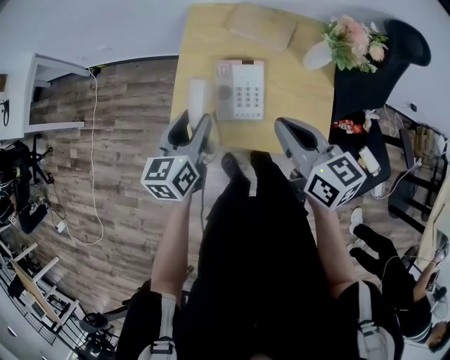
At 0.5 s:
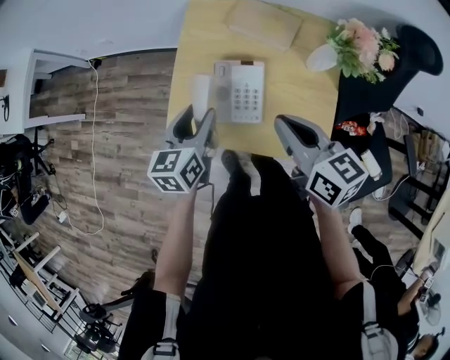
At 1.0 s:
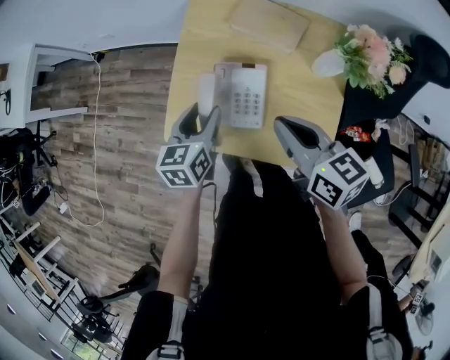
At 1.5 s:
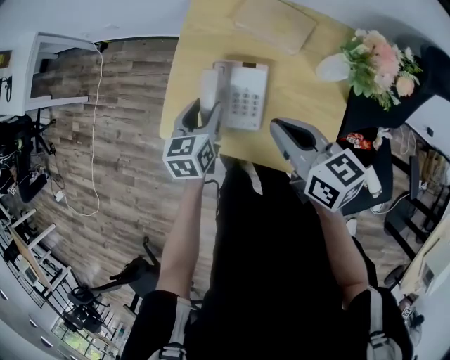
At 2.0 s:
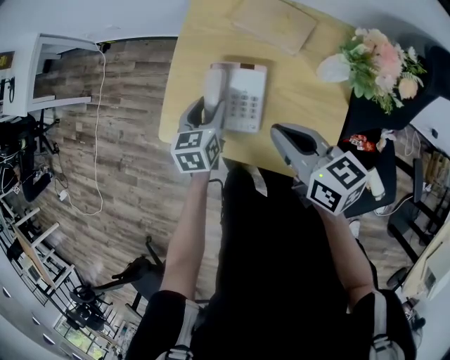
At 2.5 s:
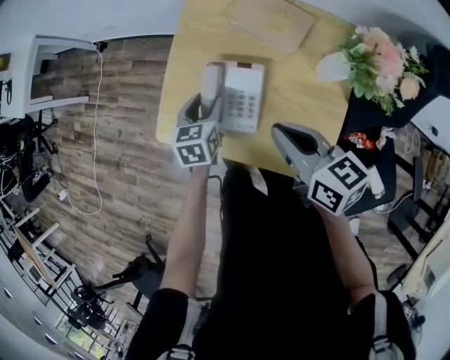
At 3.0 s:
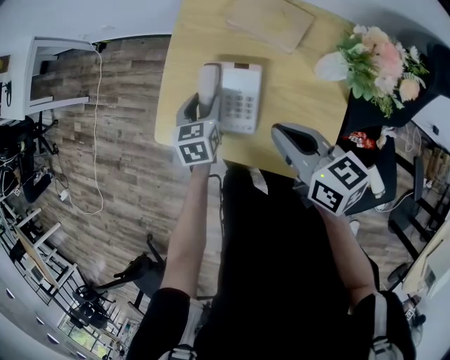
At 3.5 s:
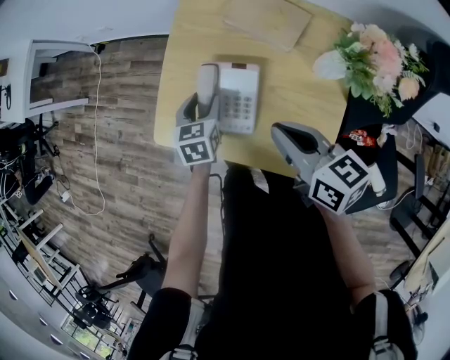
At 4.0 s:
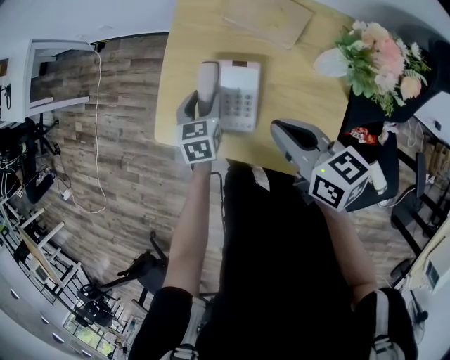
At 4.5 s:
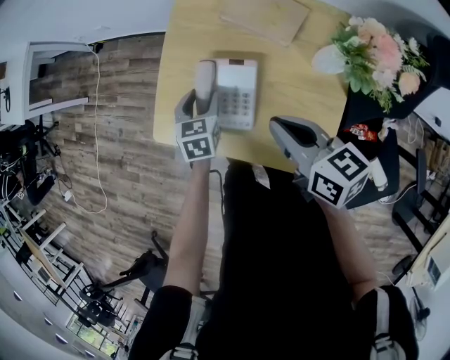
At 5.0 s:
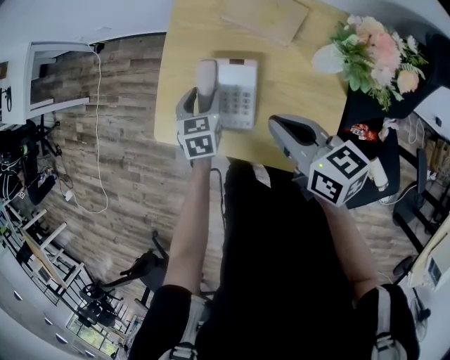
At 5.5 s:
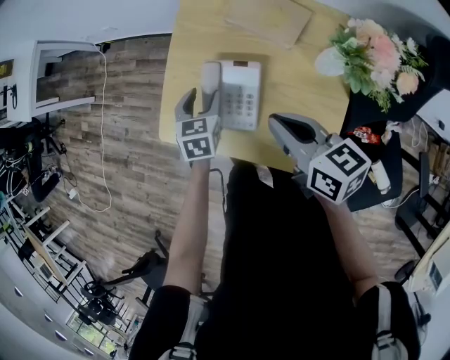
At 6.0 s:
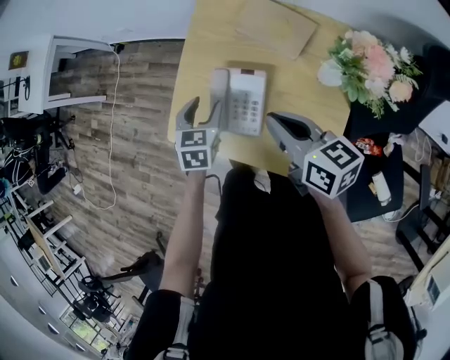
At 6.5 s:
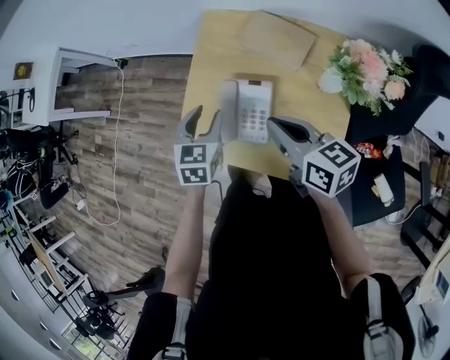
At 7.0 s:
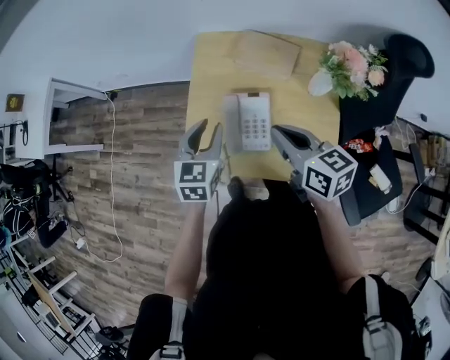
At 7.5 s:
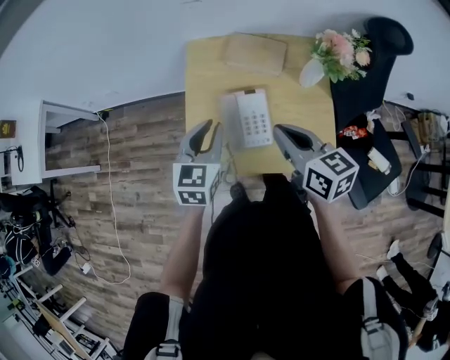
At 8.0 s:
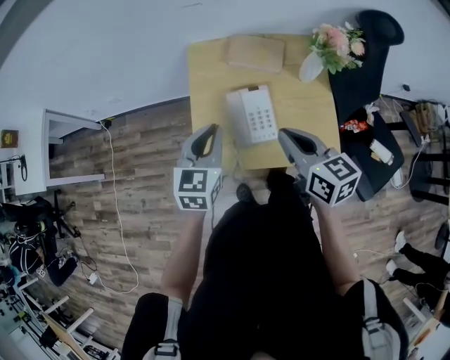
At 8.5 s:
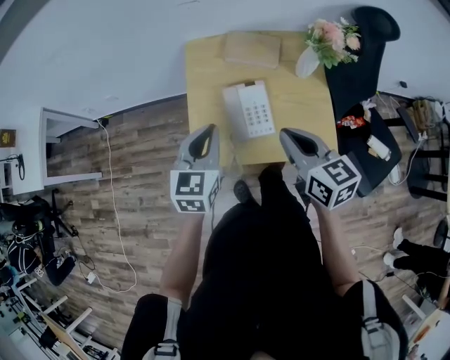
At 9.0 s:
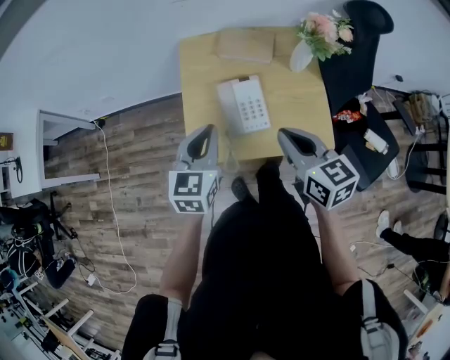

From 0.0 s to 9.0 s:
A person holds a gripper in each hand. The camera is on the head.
From 0.0 s to 2.0 s: The left gripper moves downward, to the right and forward, about 20 cm, and swivels about 20 degrees; the right gripper travels downward, to the right and forward by some 10 cm.
From 2.0 s to 4.5 s: There are only small adjustments of the grippers.
From 4.5 s to 7.0 s: The left gripper heads upward, covering about 20 cm, rotates some 20 degrees, and closes; the right gripper shifts roughly 10 cm upward and to the left.
From 7.0 s to 9.0 s: The right gripper travels backward by about 10 cm. Meanwhile the left gripper shifts approximately 10 cm backward and upward, and closes up.

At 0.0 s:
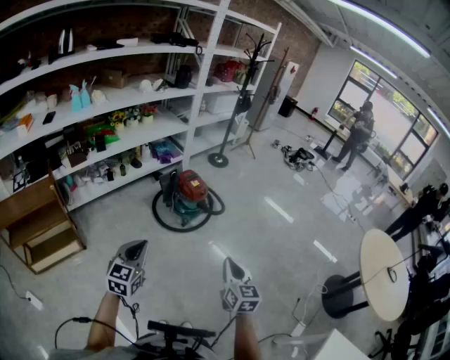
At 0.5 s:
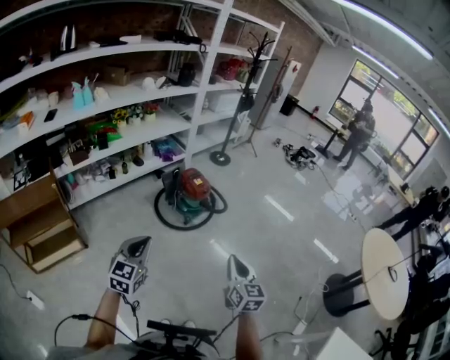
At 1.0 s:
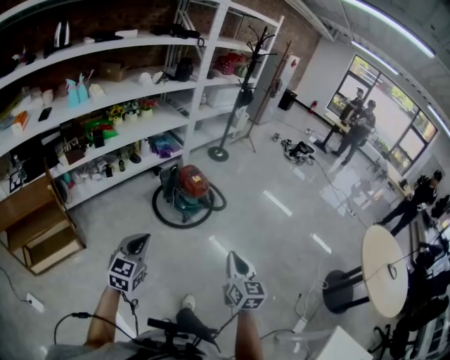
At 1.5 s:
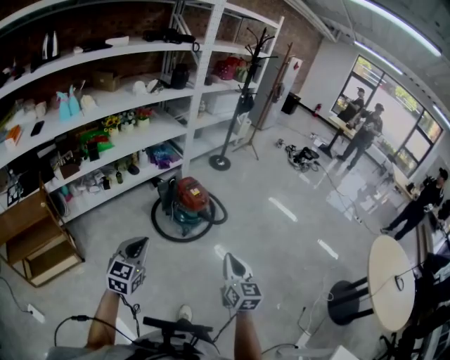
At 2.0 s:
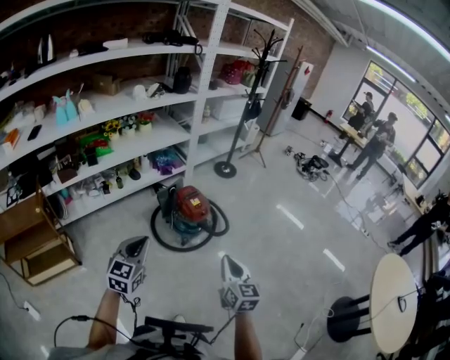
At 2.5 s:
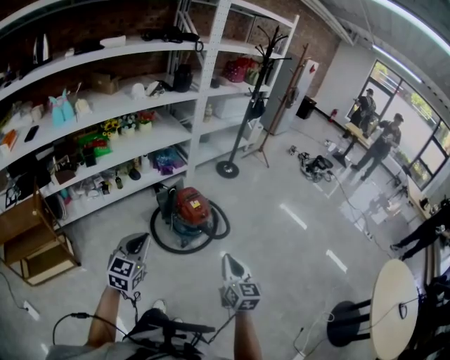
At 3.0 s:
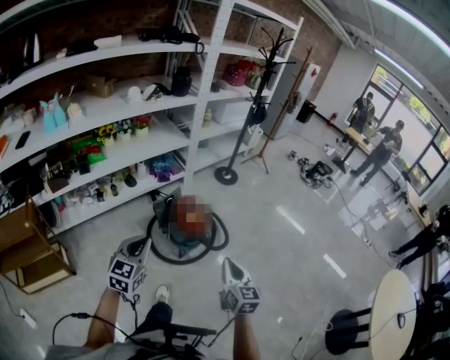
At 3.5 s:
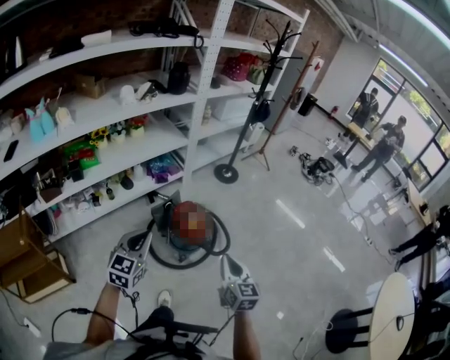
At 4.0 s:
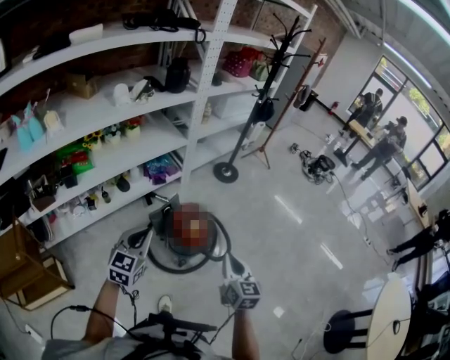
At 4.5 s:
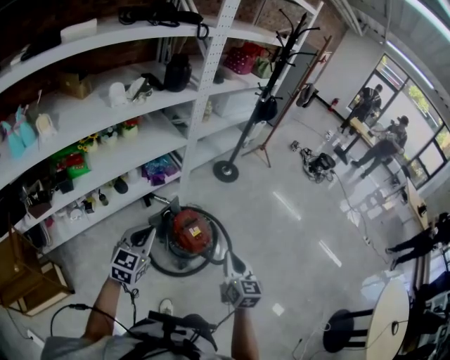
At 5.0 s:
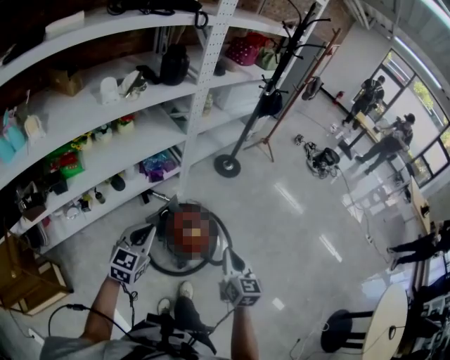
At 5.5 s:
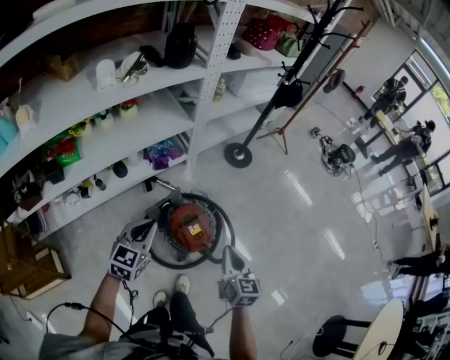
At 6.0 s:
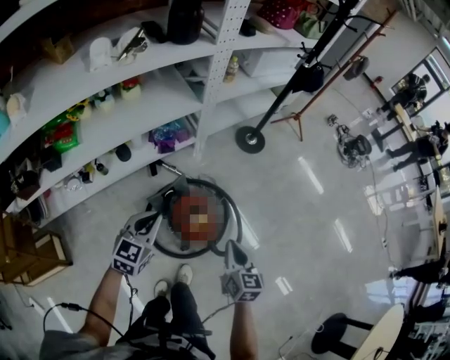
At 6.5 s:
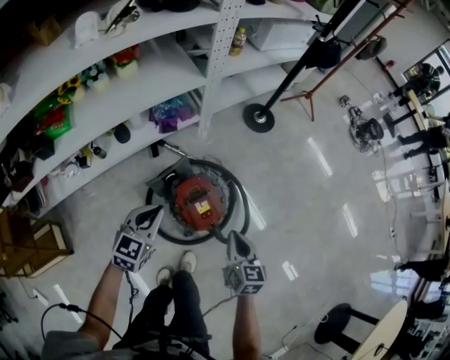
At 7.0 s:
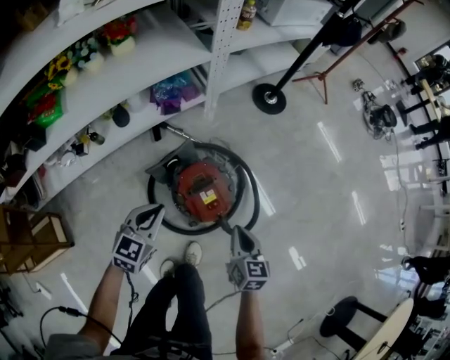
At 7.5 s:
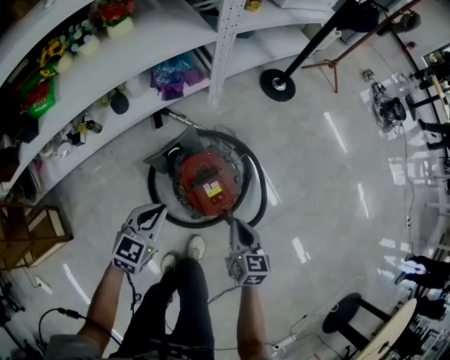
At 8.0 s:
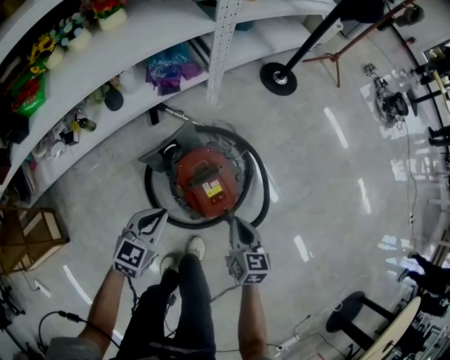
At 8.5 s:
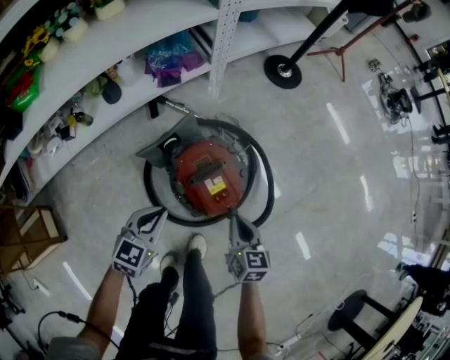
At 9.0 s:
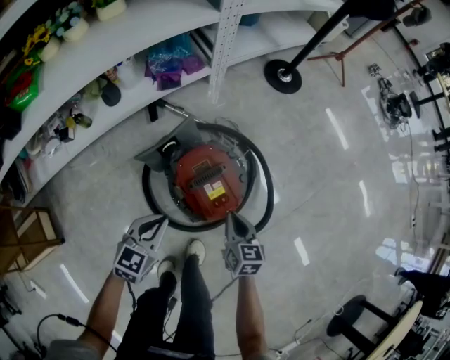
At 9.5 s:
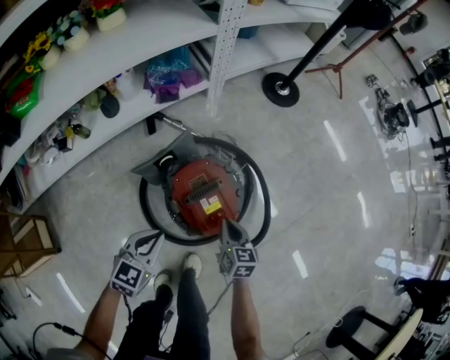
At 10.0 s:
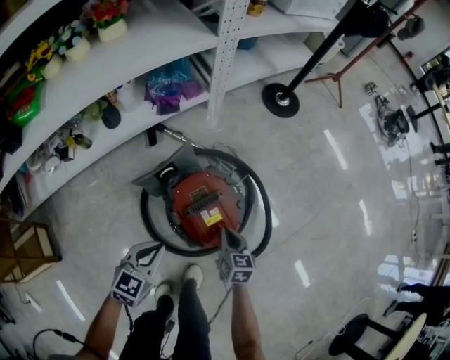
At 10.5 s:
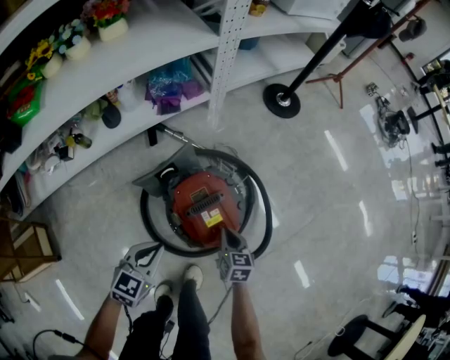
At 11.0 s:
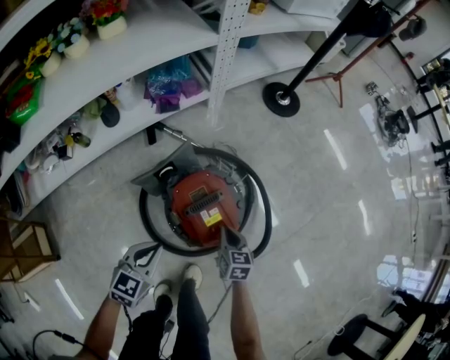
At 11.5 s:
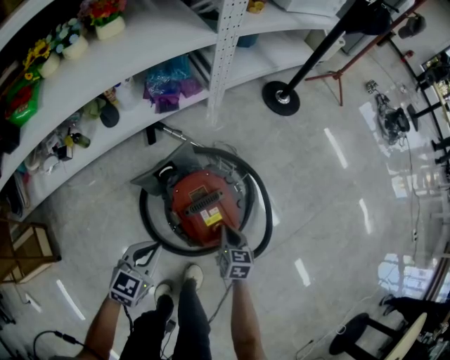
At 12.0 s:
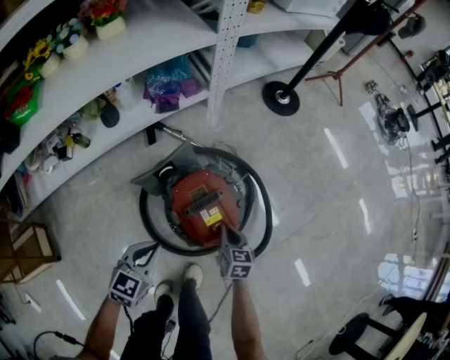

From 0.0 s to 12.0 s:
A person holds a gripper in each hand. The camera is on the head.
From 0.0 s to 2.0 s: Both grippers move forward, some 25 cm.
From 2.0 s to 4.0 s: Both grippers move forward, approximately 35 cm.
From 4.0 s to 6.0 s: Both grippers move forward and downward, roughly 25 cm.
From 6.0 s to 8.0 s: The grippers both shift downward by some 25 cm.
From 8.0 s to 10.0 s: The left gripper shifts some 5 cm downward. The right gripper goes about 15 cm downward.
From 10.0 s to 12.0 s: The grippers move only a little.

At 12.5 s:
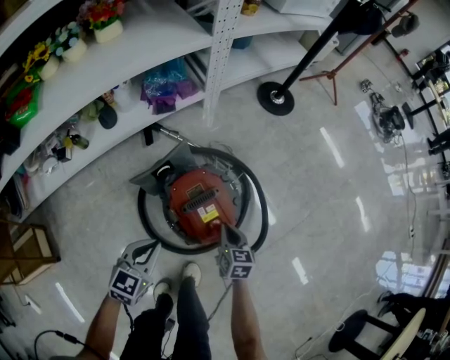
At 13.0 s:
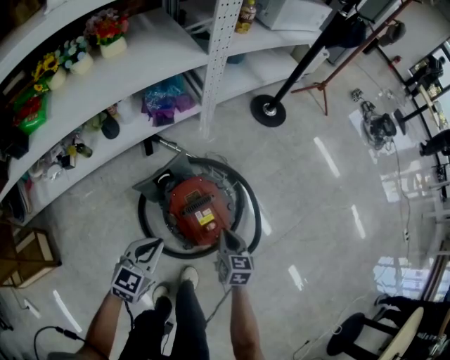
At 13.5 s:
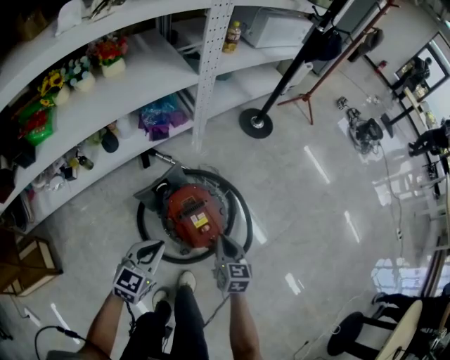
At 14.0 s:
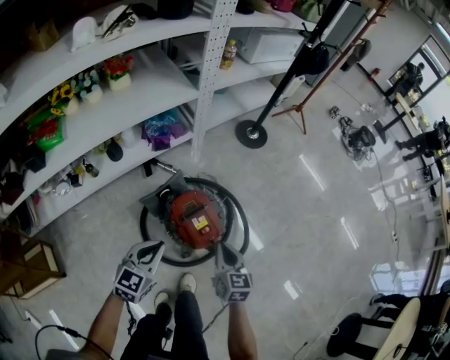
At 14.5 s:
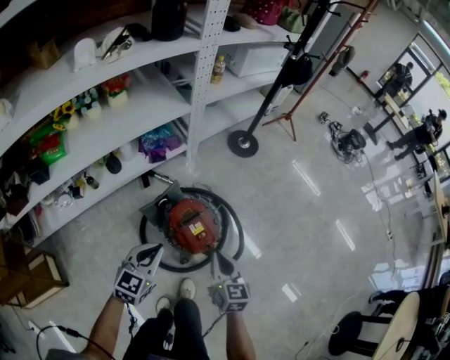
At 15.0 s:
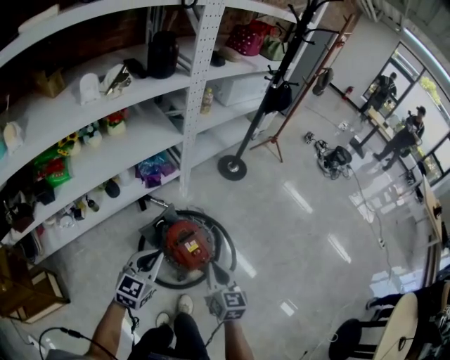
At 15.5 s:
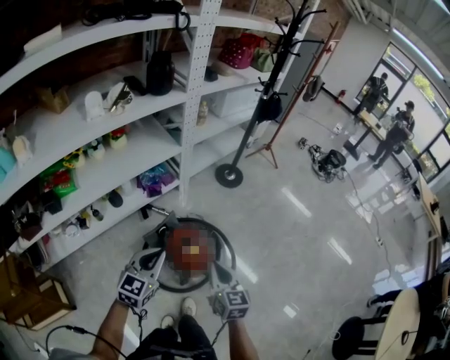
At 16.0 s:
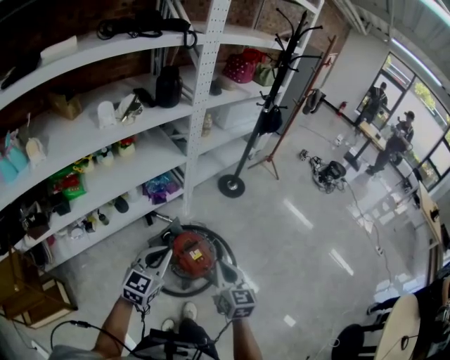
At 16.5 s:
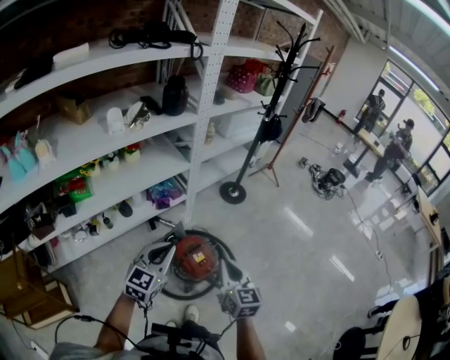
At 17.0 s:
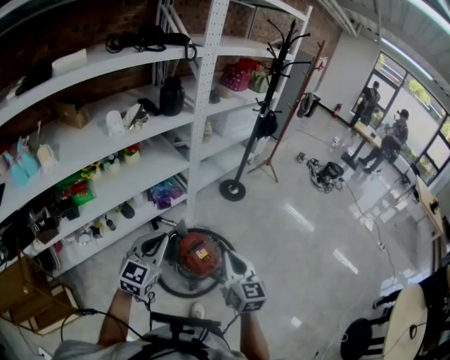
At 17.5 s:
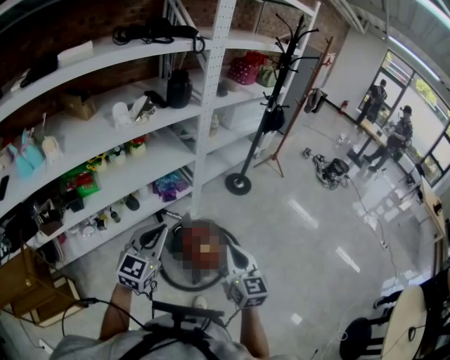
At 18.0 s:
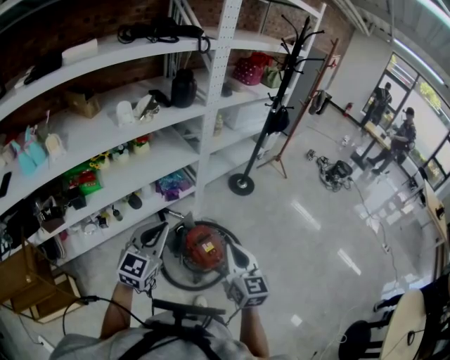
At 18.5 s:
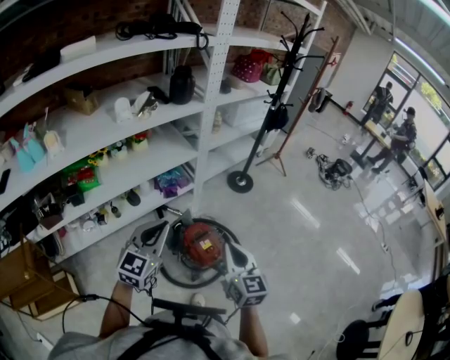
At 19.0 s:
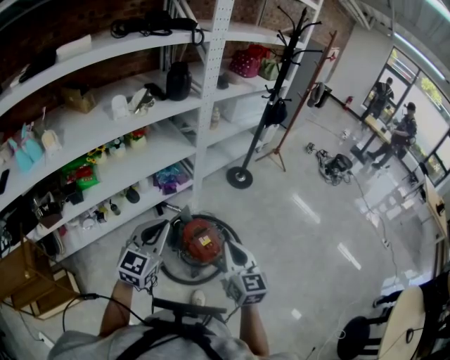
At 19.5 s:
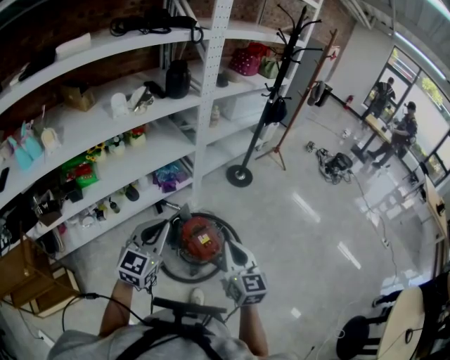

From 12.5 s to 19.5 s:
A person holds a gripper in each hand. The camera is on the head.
From 12.5 s to 14.5 s: Both grippers travel together upward, about 30 cm.
From 14.5 s to 16.0 s: The two grippers go roughly 20 cm upward.
From 16.0 s to 17.5 s: The right gripper moves upward, some 10 cm, while the left gripper is displaced upward and to the left by about 10 cm.
From 17.5 s to 19.5 s: There are only small adjustments of the grippers.
